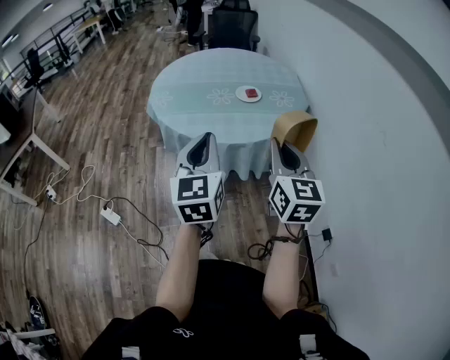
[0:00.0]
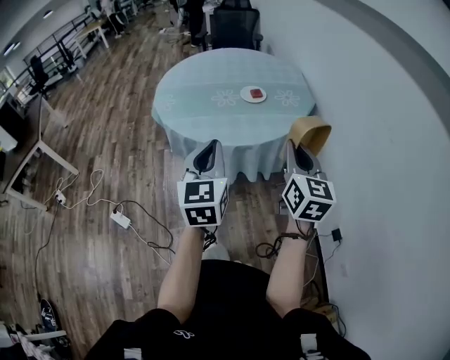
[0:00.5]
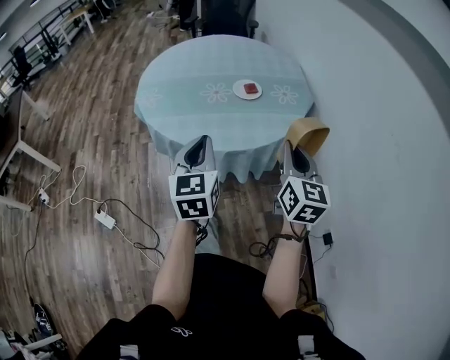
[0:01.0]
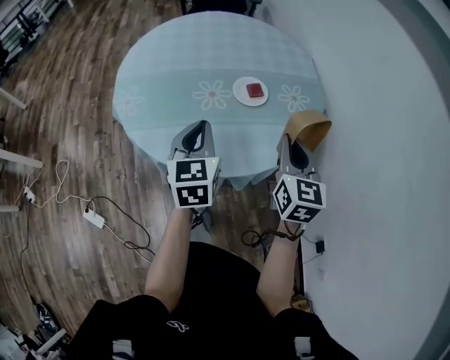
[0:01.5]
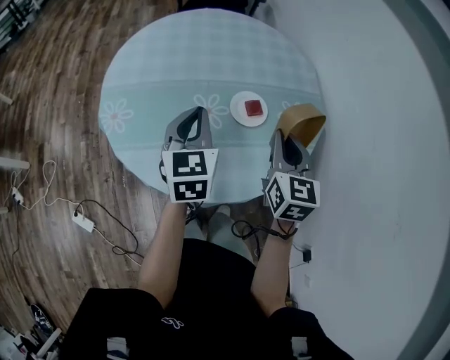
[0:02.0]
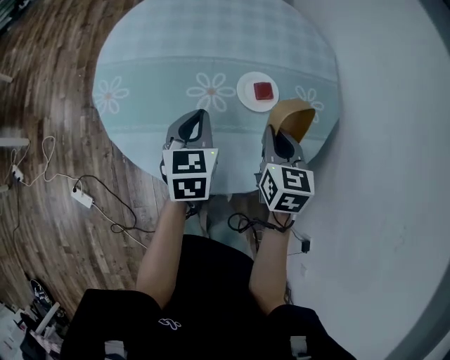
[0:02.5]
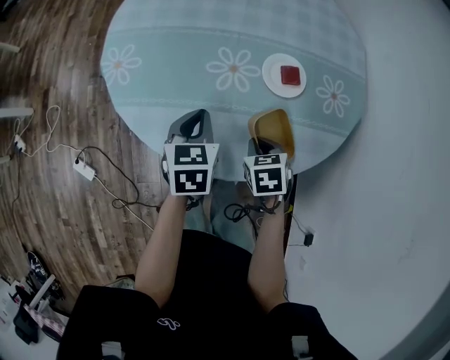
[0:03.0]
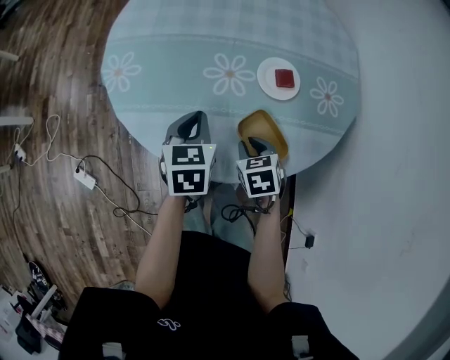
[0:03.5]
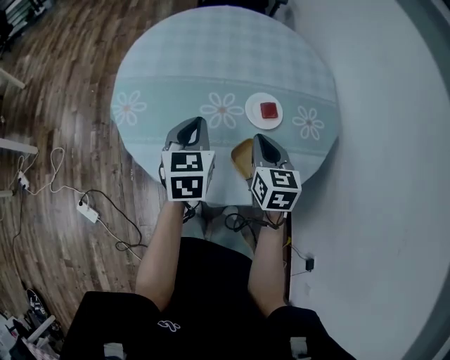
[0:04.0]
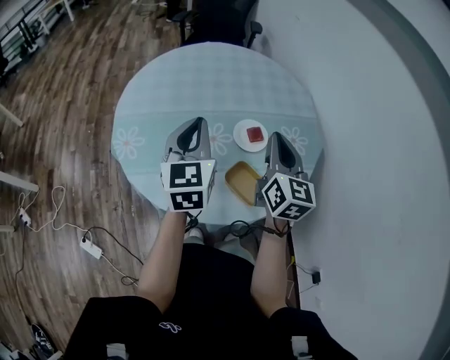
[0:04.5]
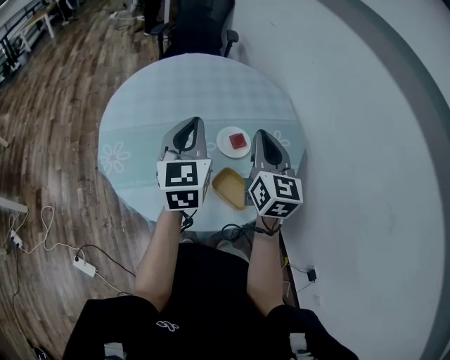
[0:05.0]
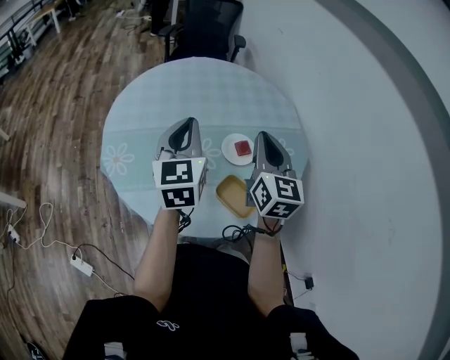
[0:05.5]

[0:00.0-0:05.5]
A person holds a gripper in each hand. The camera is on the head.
0.0 to 2.0 s: The pair of grippers is taken forward, some 50 cm.
2.0 to 3.5 s: The left gripper shifts about 15 cm downward, and swivels some 20 degrees. Meanwhile the right gripper heads downward, covering about 25 cm, and points its fingers approximately 40 degrees further downward.
3.5 to 5.5 s: The grippers both shift upward by about 30 cm. The left gripper tilts its fingers about 30 degrees upward. The right gripper tips its fingers upward by about 60 degrees.

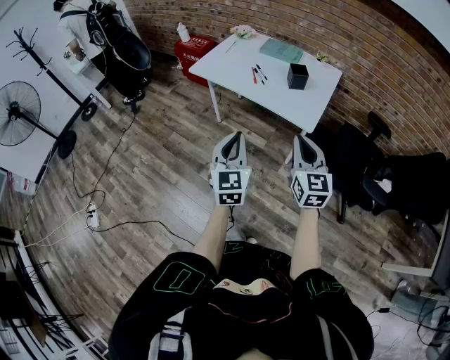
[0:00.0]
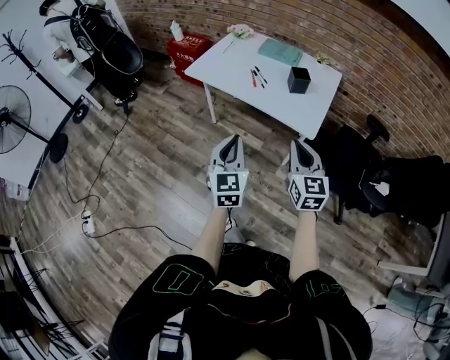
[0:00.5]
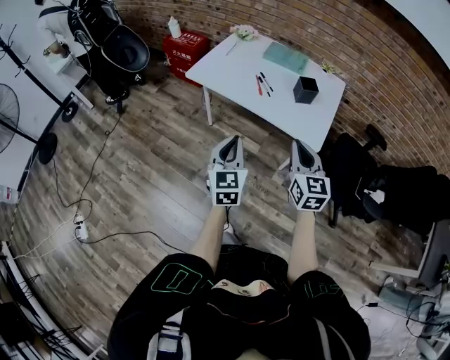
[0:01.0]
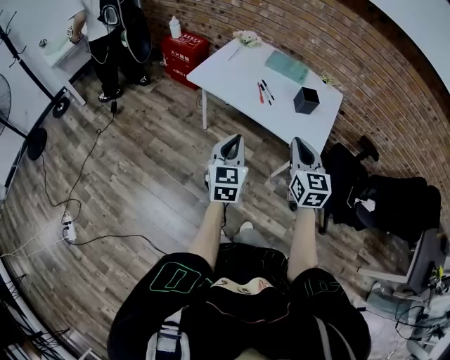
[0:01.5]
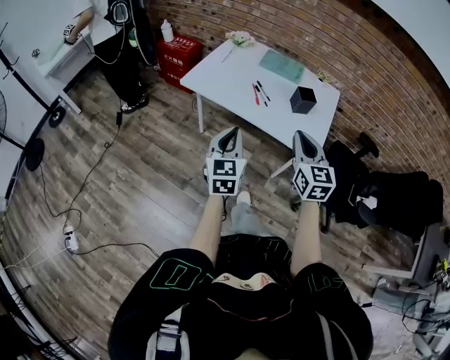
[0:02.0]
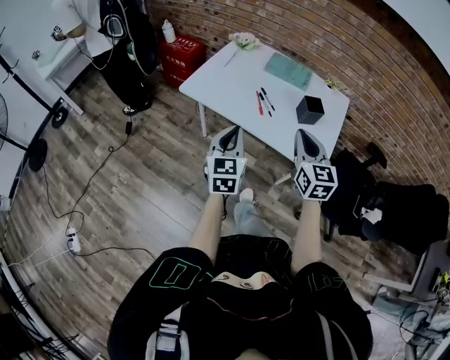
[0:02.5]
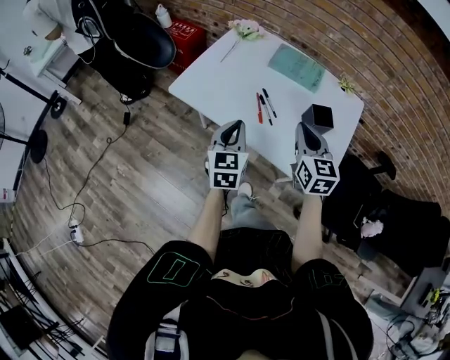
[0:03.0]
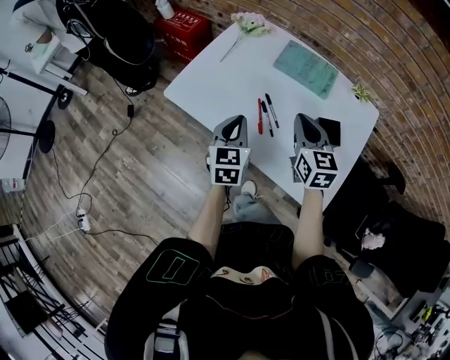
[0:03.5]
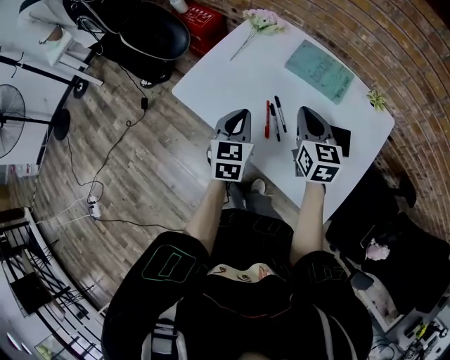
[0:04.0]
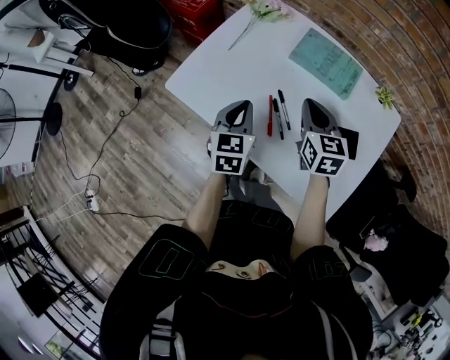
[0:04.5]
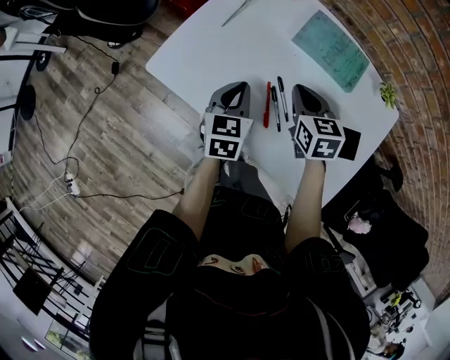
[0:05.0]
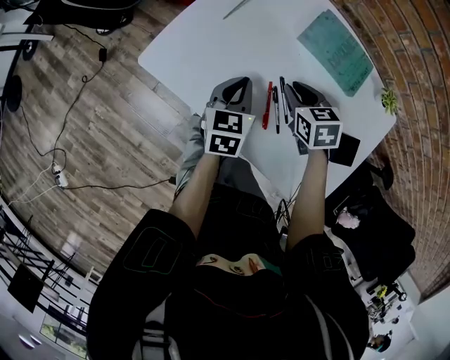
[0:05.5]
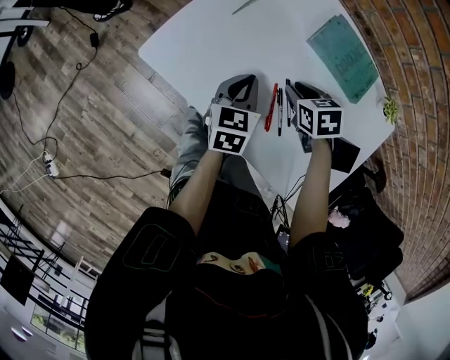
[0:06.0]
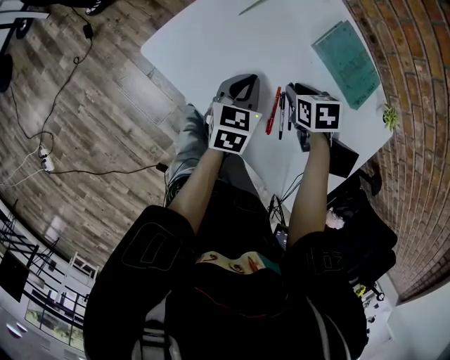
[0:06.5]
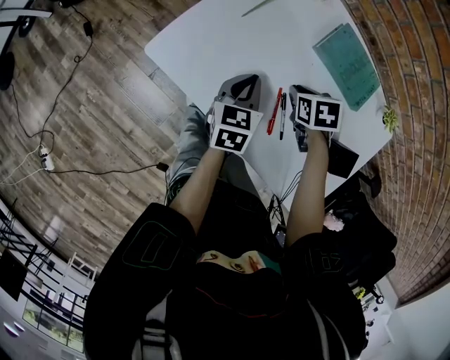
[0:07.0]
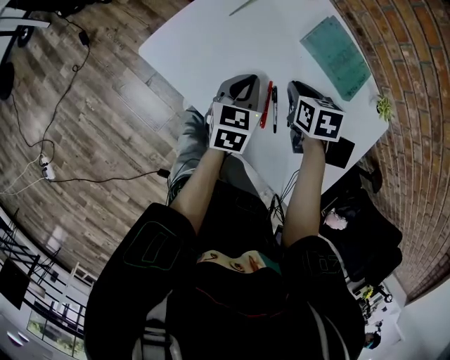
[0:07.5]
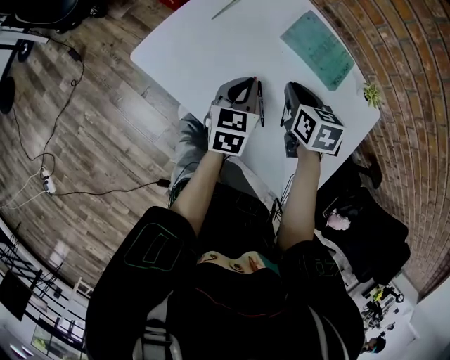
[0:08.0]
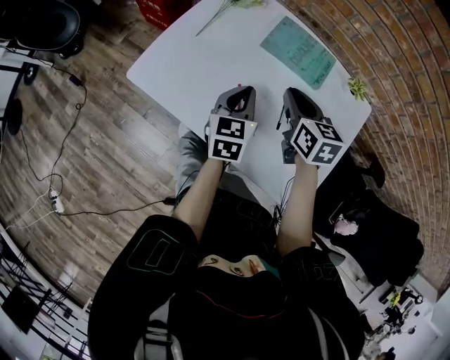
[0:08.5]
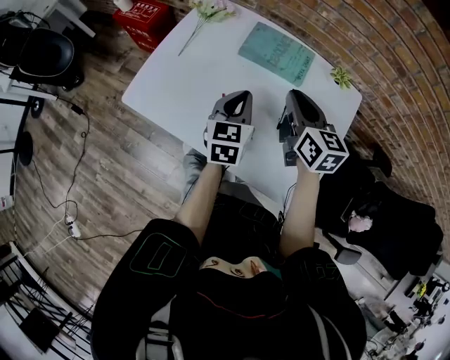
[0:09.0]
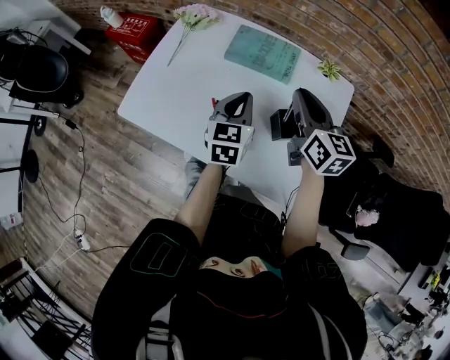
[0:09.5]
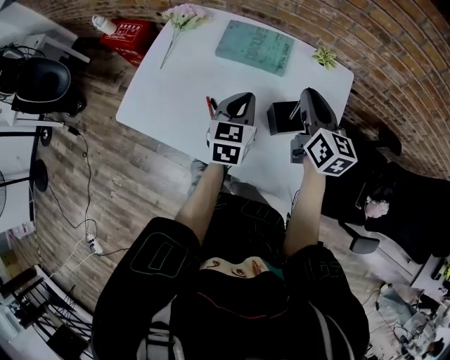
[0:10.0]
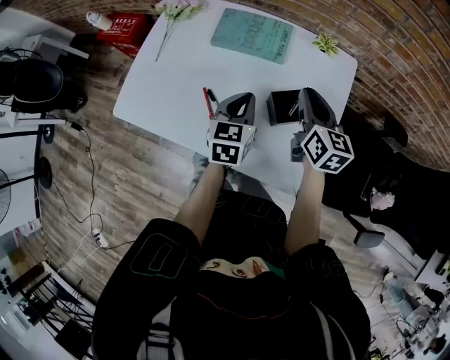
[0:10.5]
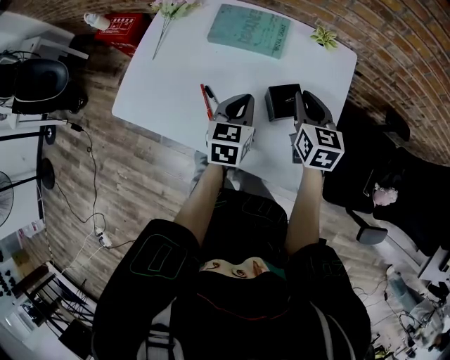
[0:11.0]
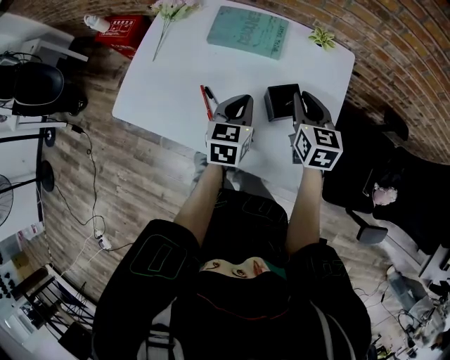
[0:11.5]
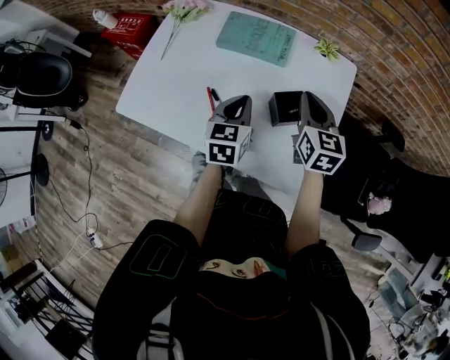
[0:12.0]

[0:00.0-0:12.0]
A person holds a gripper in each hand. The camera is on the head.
0.0 to 2.0 s: The two grippers go about 20 cm forward and to the left.
2.0 to 4.0 s: Both grippers travel together forward, approximately 35 cm.
4.0 to 6.0 s: The two grippers go about 20 cm downward and forward. The right gripper points its fingers some 40 degrees further downward, and opens. The left gripper swivels approximately 20 degrees.
6.0 to 8.0 s: The right gripper travels upward by approximately 10 cm, and turns by roughly 20 degrees. Meanwhile the left gripper shifts by approximately 5 cm.
8.0 to 10.0 s: Both grippers travel together to the right and upward, approximately 20 cm. The right gripper points its fingers about 30 degrees further upward.

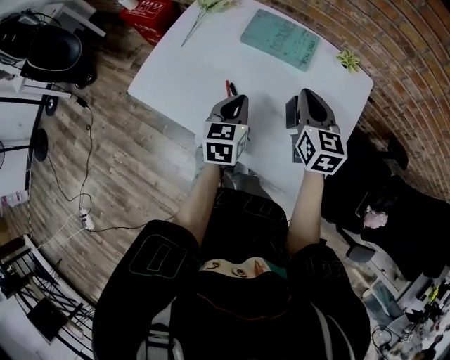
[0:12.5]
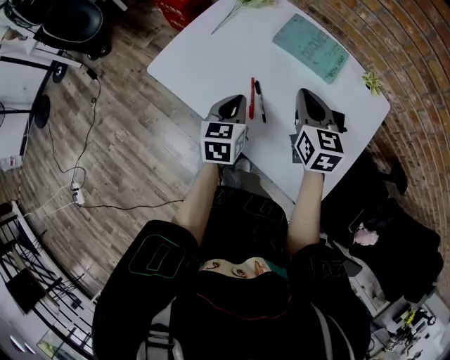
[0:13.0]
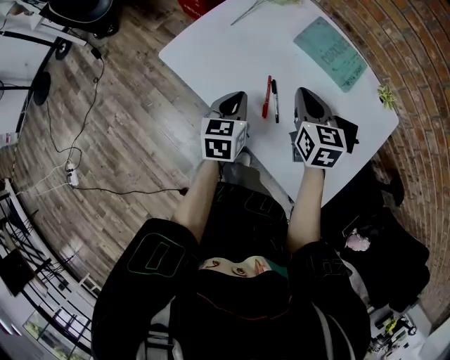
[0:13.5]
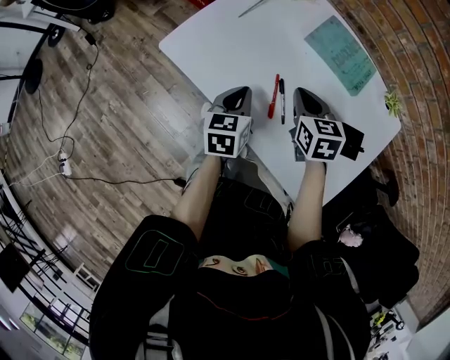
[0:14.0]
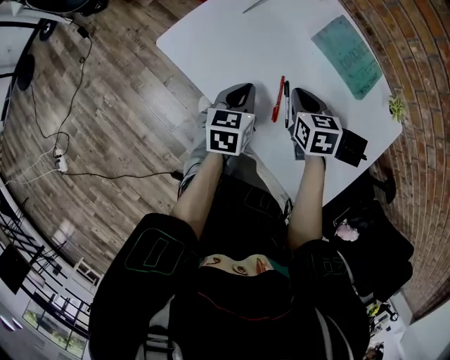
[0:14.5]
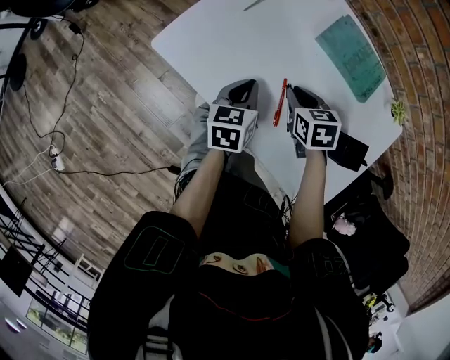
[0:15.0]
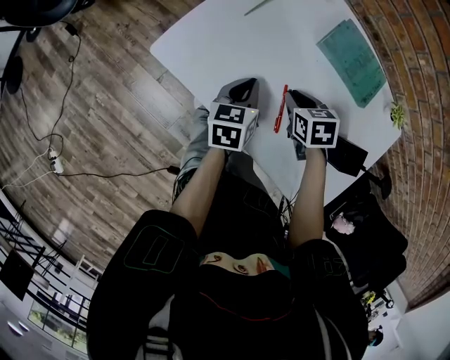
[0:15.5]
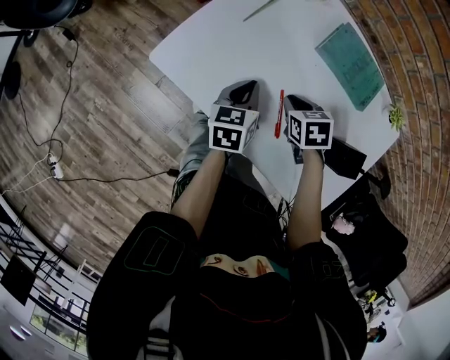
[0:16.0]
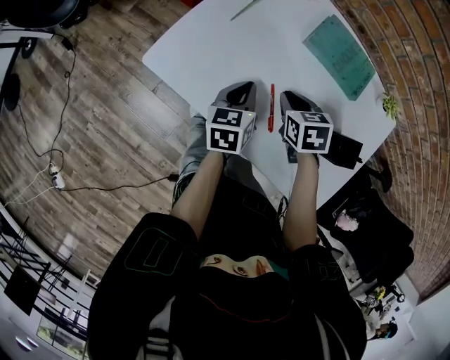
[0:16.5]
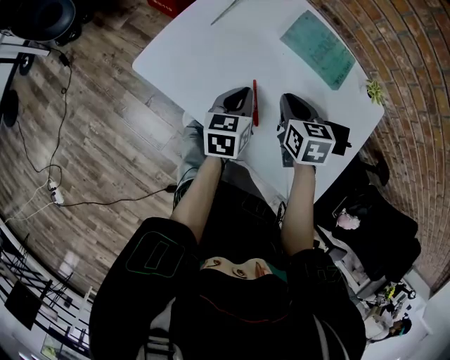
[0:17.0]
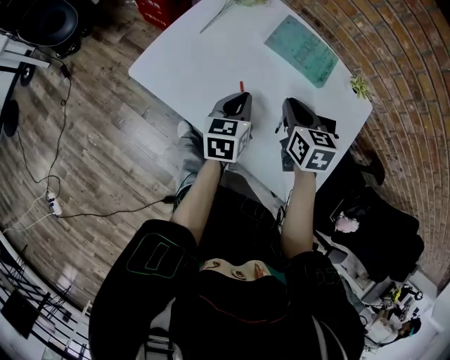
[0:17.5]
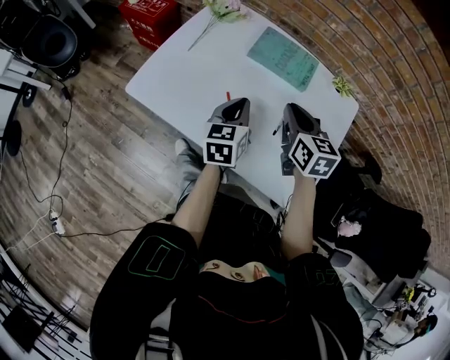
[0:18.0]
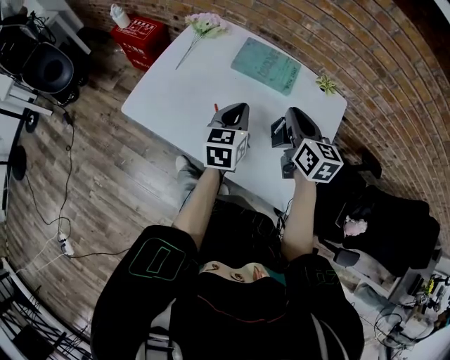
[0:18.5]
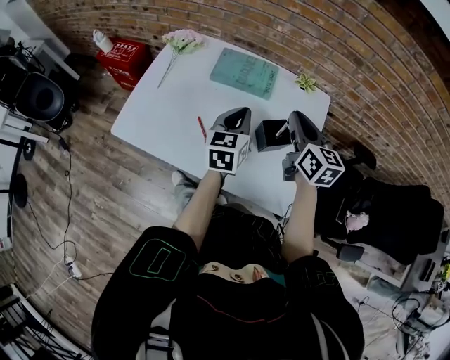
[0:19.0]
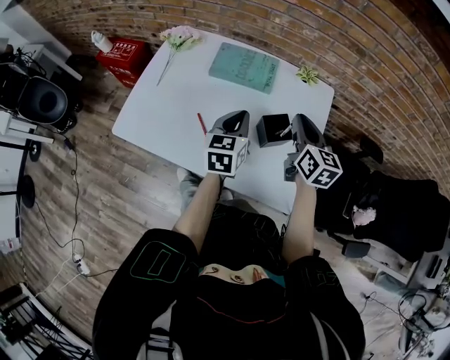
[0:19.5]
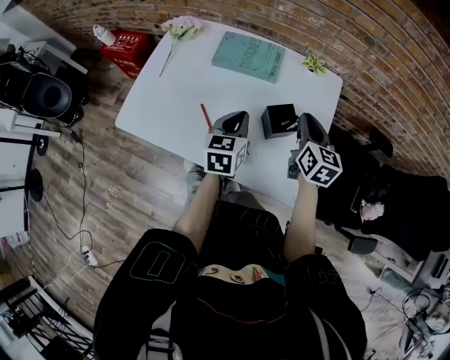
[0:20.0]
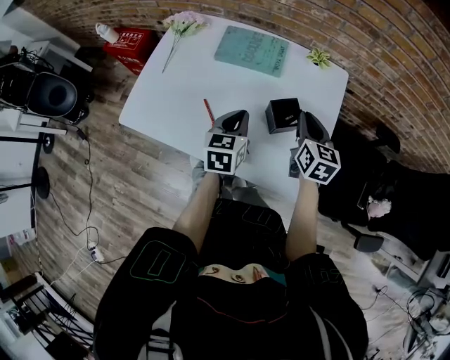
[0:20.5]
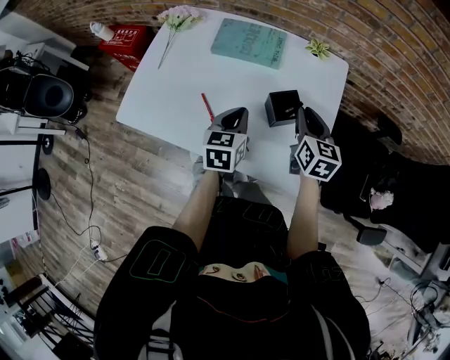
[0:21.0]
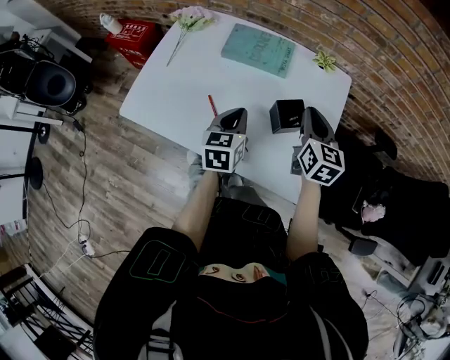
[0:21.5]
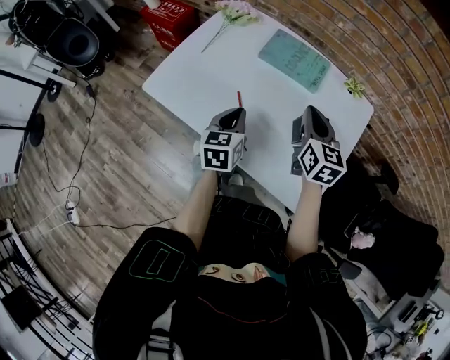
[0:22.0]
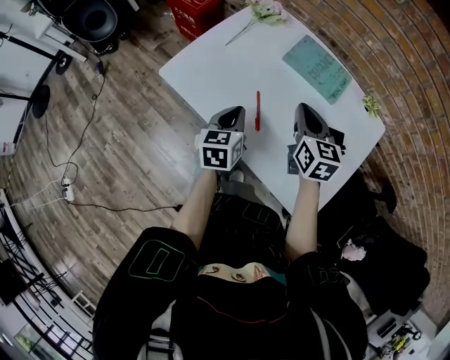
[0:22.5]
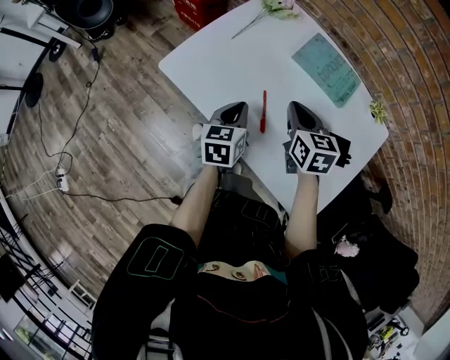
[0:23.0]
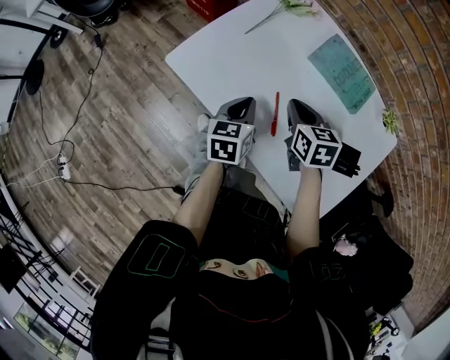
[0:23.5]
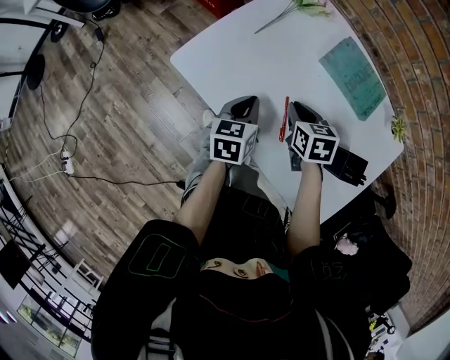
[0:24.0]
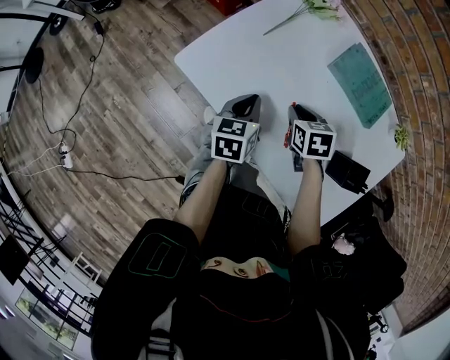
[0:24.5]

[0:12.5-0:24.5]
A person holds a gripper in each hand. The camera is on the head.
12.5 to 14.5 s: Both grippers move to the left and downward, some 20 cm. The right gripper changes its angle by about 40 degrees.
14.5 to 16.5 s: There are only small adjustments of the grippers.
16.5 to 18.5 s: The right gripper is displaced upward and to the right by about 25 cm, and points its fingers roughly 40 degrees further upward, while the left gripper heads to the right and upward, covering approximately 20 cm, and changes its angle by approximately 20 degrees.
18.5 to 20.5 s: The right gripper heads to the right and downward, covering about 15 cm; the left gripper goes about 10 cm to the right and downward.
20.5 to 22.5 s: The grippers both shift to the left by some 20 cm. The right gripper turns by about 30 degrees, while the left gripper changes its angle by roughly 30 degrees.
22.5 to 24.5 s: The right gripper goes some 20 cm downward and to the left, and angles its fingers downward, by roughly 40 degrees, while the left gripper travels forward, downward and to the left by about 10 cm.
